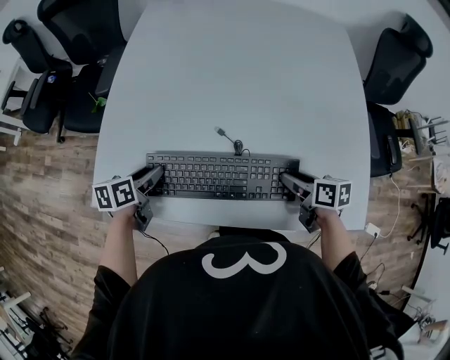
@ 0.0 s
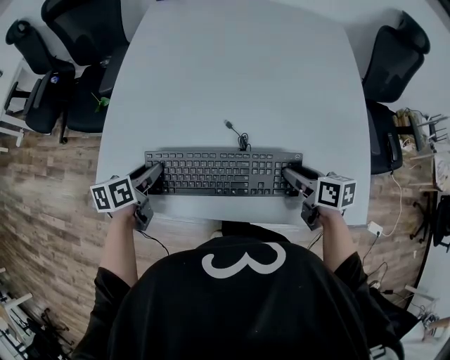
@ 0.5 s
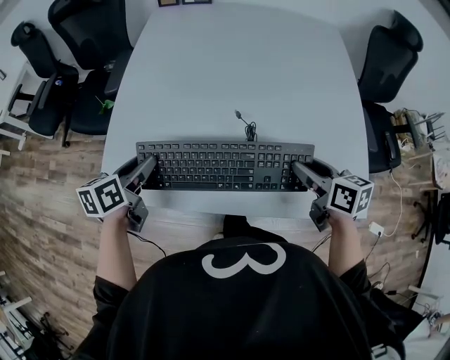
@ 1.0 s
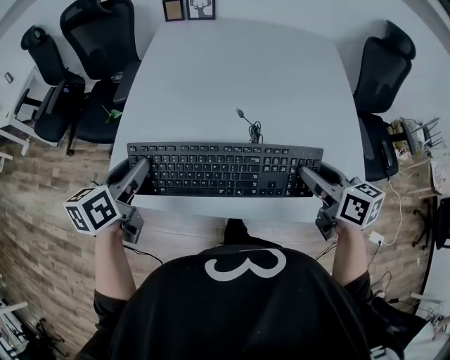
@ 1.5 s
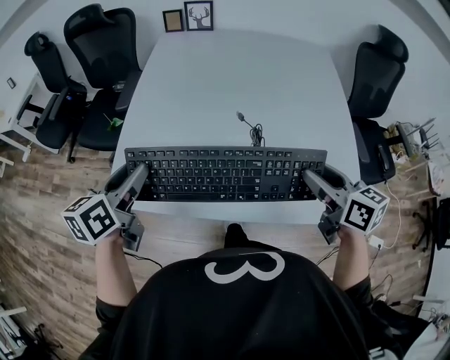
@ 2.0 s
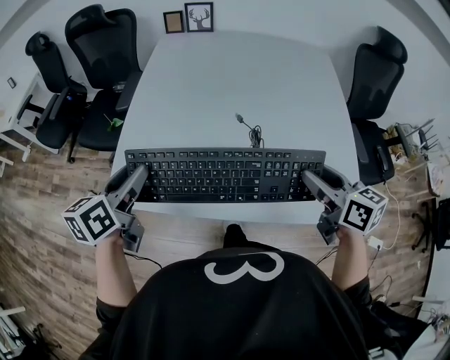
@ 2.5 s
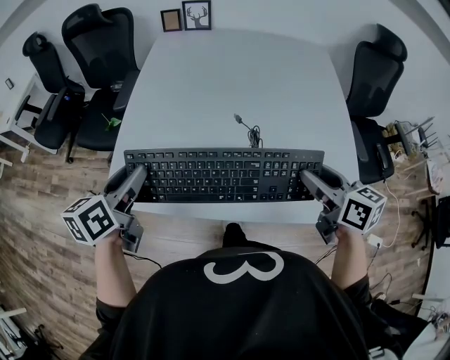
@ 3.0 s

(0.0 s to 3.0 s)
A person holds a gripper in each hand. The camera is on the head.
0.0 s - 1.5 s: Both grippers travel together upward, some 20 cm. The right gripper swivels about 20 degrees; the left gripper rotates roughly 20 degrees.
1.5 s - 3.0 s: There are only small adjustments of the grippers.

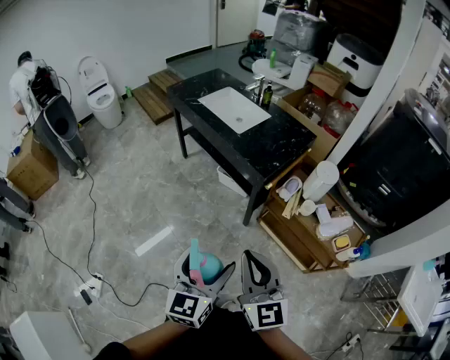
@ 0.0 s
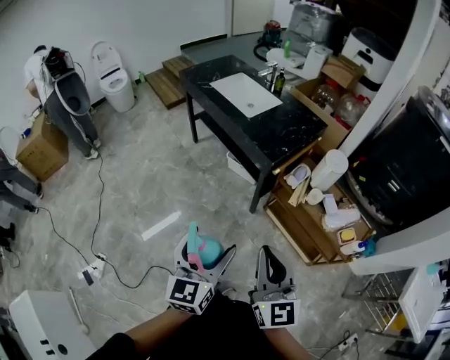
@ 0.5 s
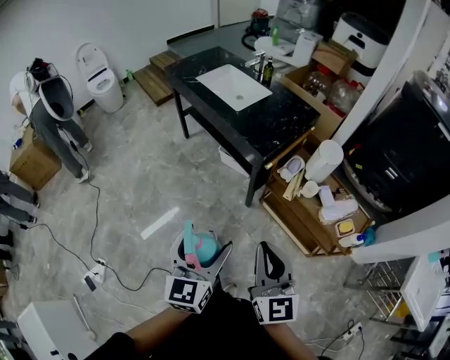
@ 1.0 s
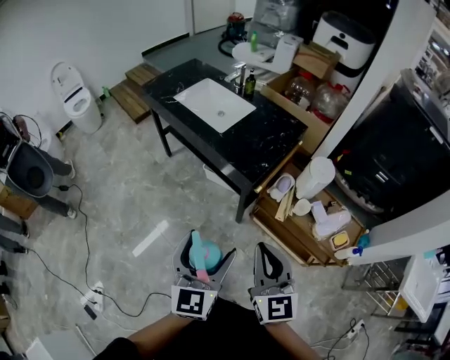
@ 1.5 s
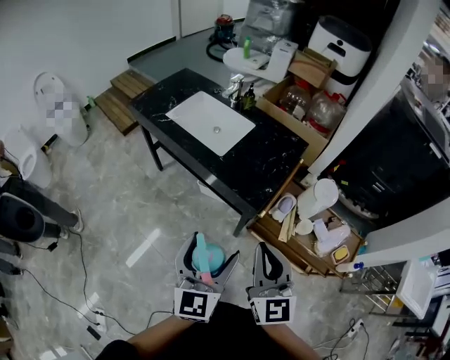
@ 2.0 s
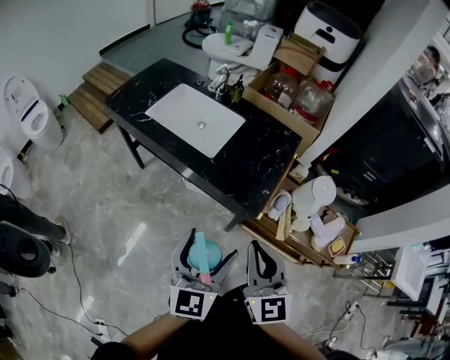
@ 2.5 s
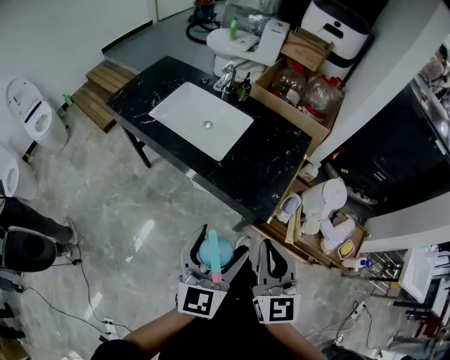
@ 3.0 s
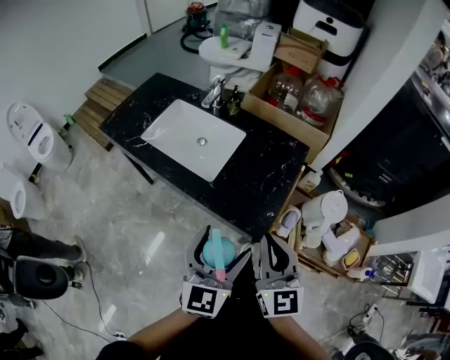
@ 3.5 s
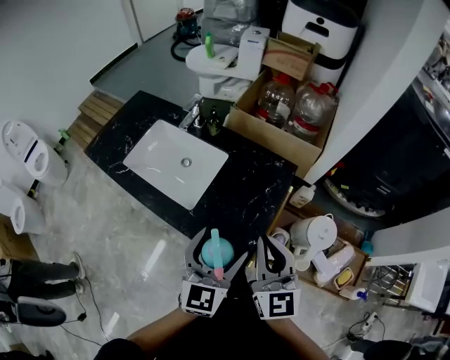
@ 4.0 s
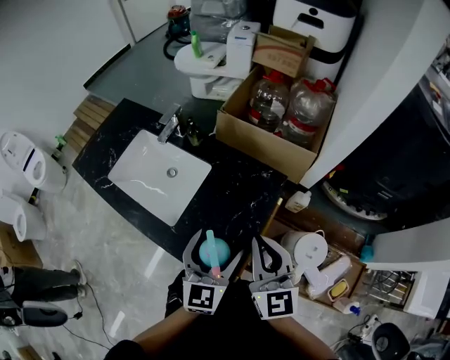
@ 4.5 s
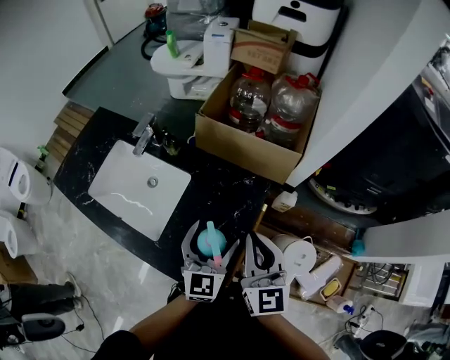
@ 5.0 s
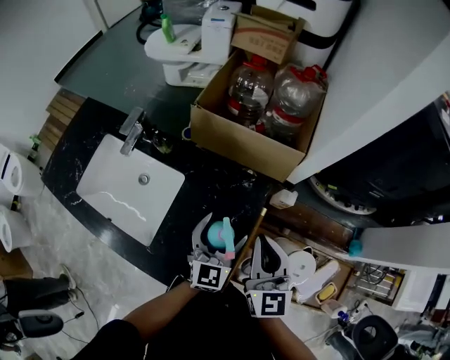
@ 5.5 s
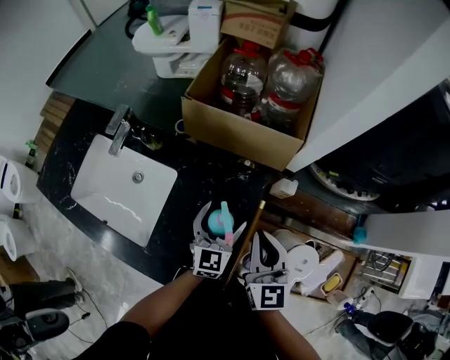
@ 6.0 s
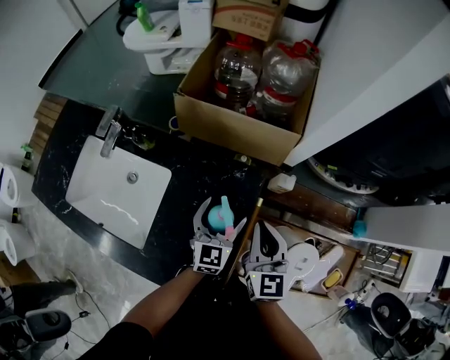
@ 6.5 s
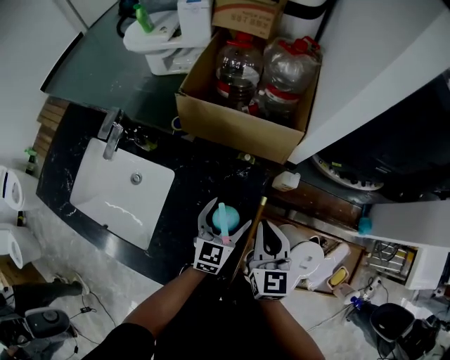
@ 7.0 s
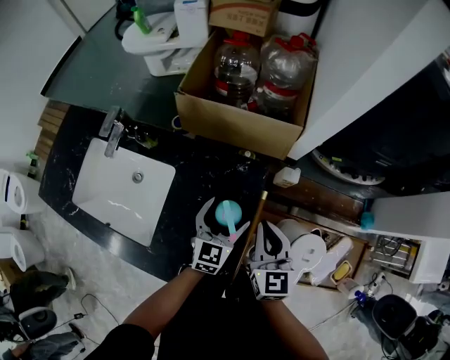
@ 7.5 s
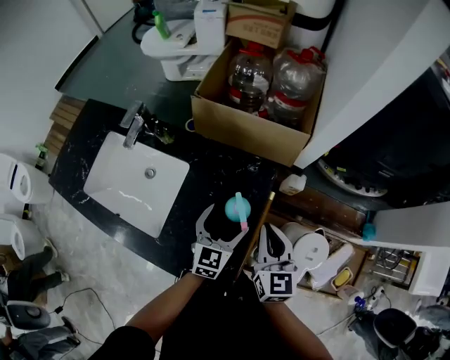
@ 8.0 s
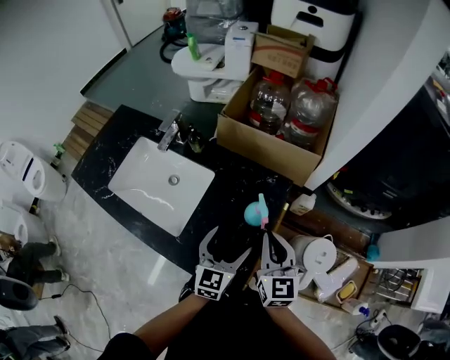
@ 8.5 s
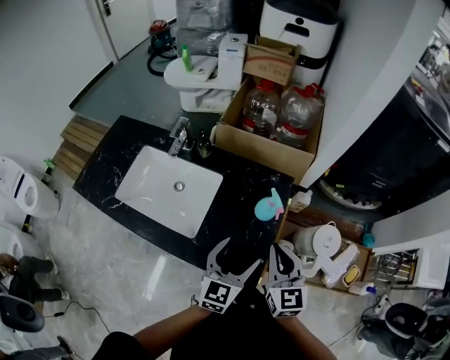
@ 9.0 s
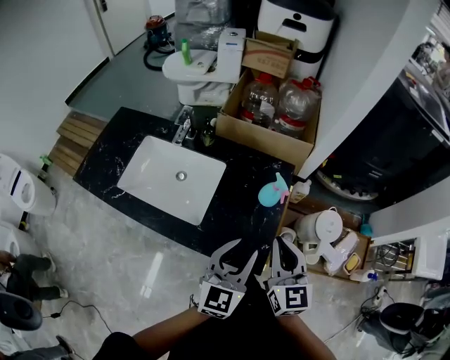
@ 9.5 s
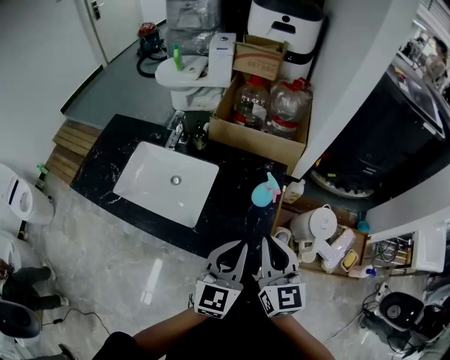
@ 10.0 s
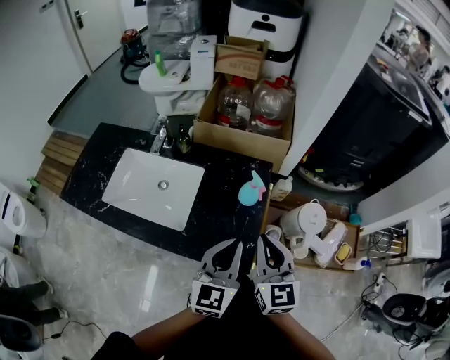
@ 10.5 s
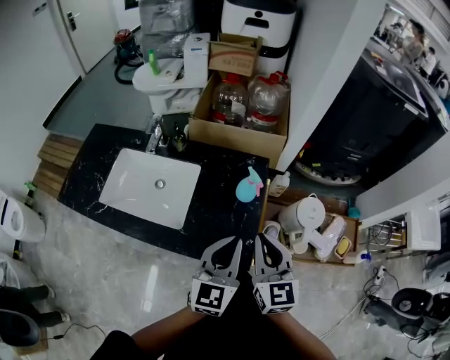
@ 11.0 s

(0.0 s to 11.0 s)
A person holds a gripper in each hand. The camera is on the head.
0.0 s - 2.0 s: Both grippers travel together forward, roughly 25 cm.
2.0 s - 3.5 s: Both grippers travel together forward, approximately 20 cm.
3.5 s - 5.5 s: The right gripper travels forward and to the right by roughly 35 cm; the left gripper moves forward, to the right and downward, some 40 cm.
5.5 s - 7.5 s: The two grippers go approximately 10 cm downward.
7.5 s - 9.0 s: The two grippers go some 20 cm backward, upward and to the left.
9.0 s - 11.0 s: The left gripper is displaced upward by some 10 cm, and closes up. Meanwhile the right gripper shifts about 5 cm backward.

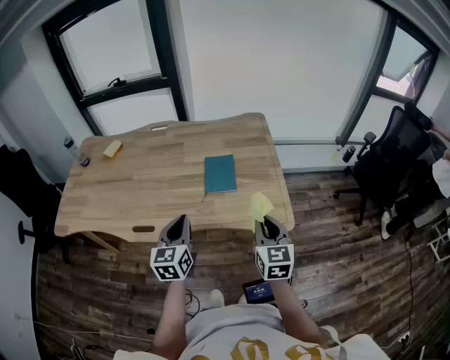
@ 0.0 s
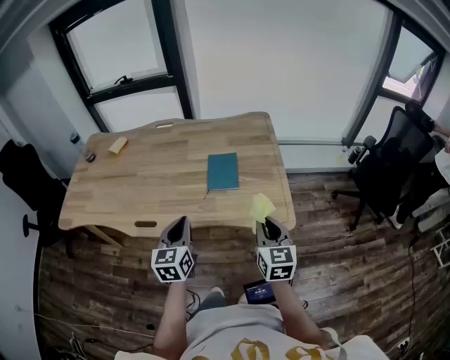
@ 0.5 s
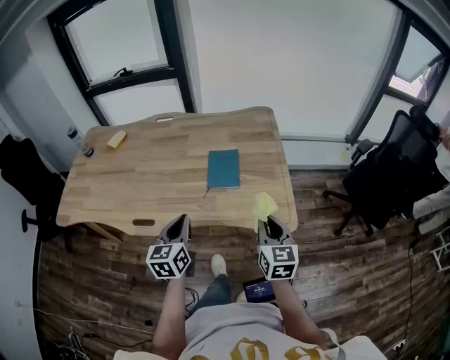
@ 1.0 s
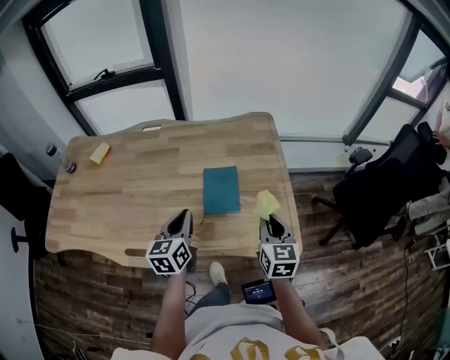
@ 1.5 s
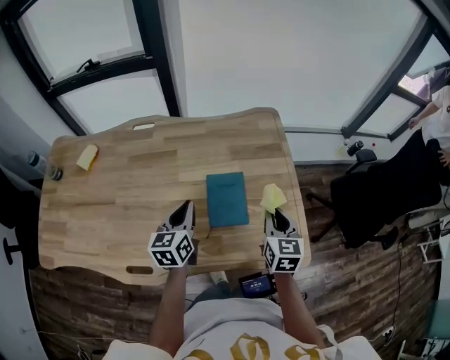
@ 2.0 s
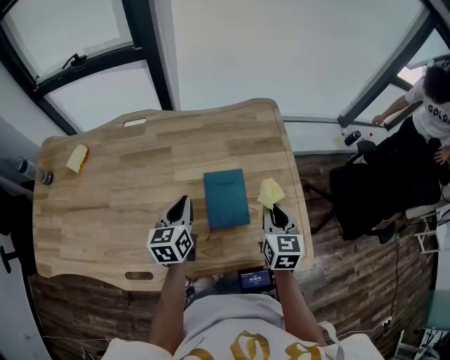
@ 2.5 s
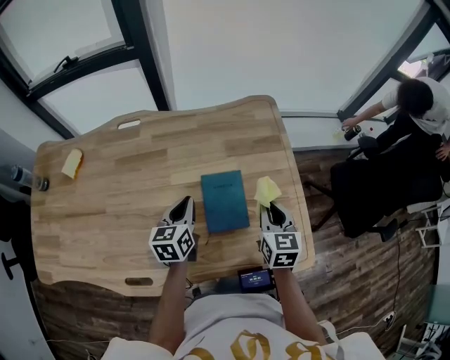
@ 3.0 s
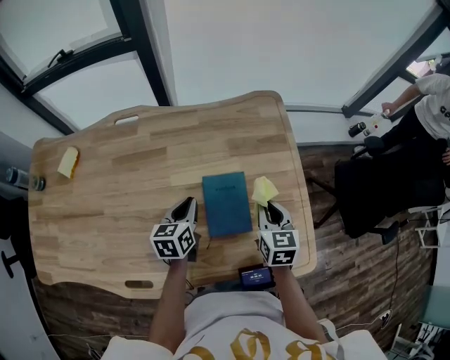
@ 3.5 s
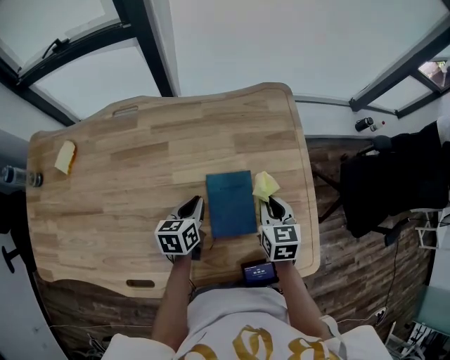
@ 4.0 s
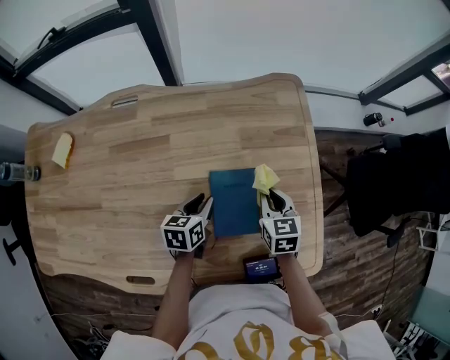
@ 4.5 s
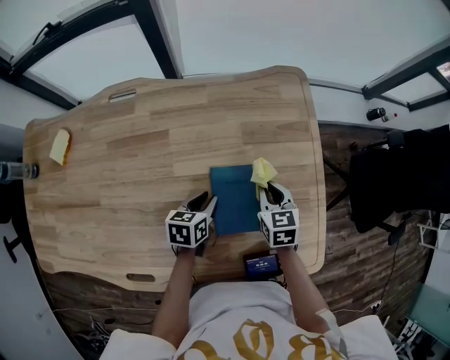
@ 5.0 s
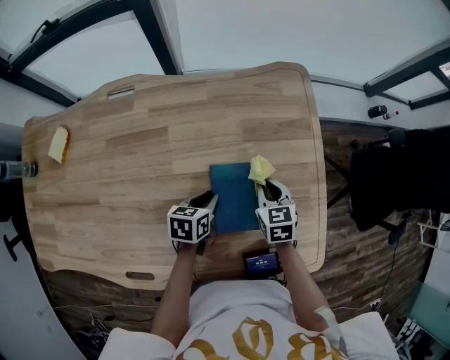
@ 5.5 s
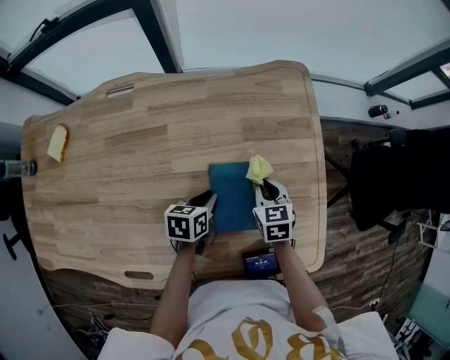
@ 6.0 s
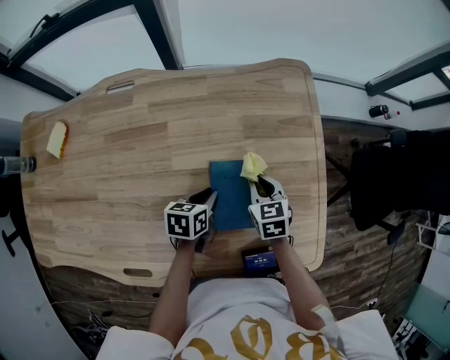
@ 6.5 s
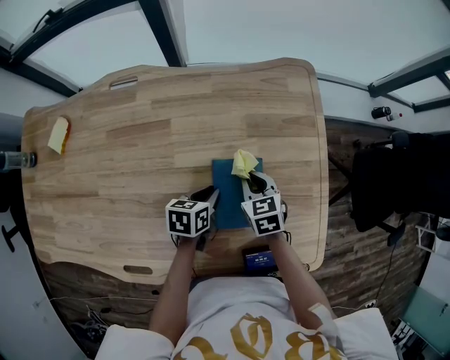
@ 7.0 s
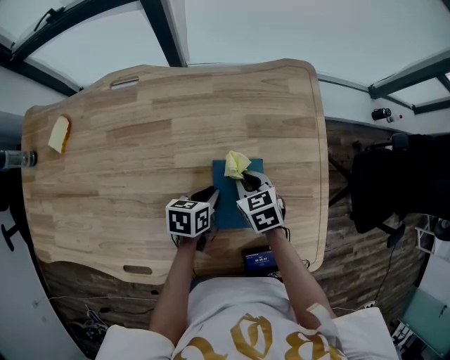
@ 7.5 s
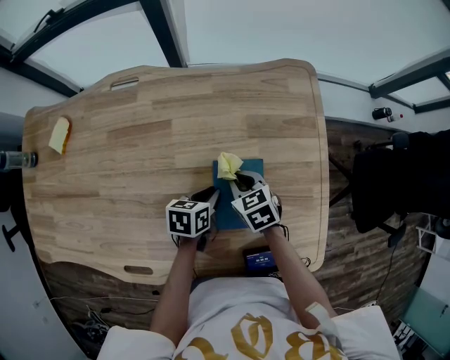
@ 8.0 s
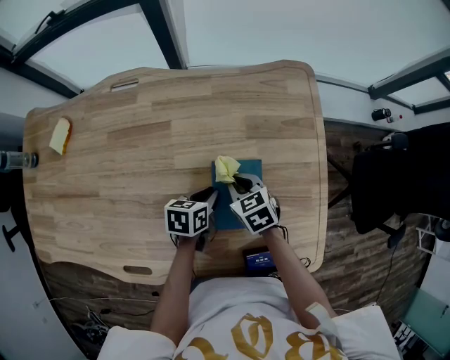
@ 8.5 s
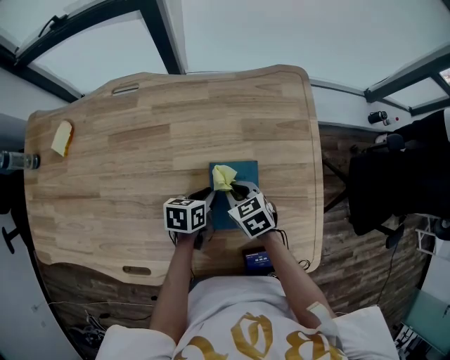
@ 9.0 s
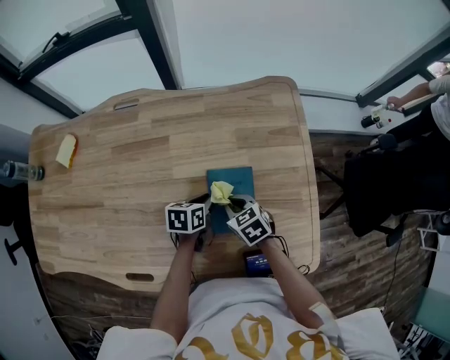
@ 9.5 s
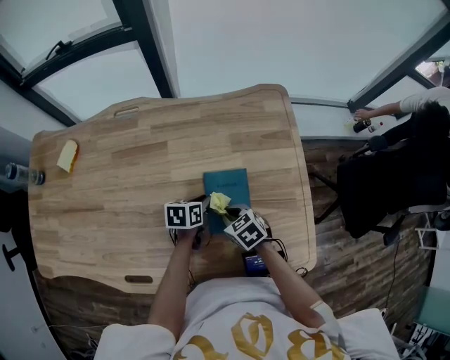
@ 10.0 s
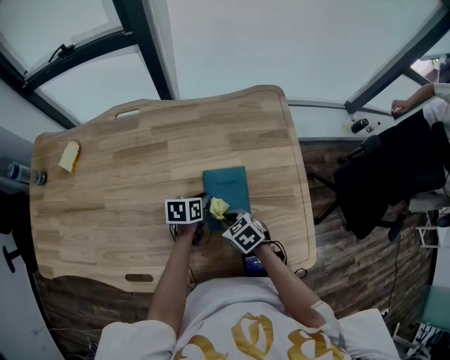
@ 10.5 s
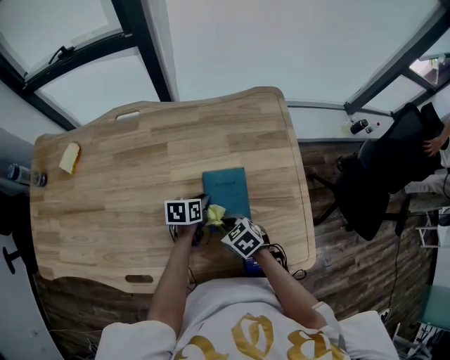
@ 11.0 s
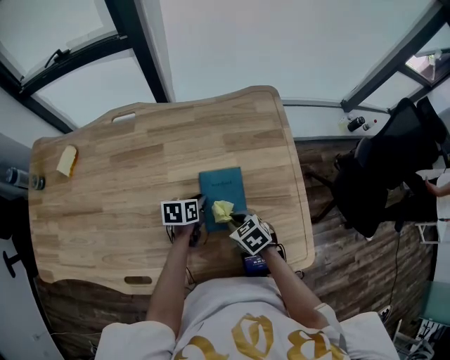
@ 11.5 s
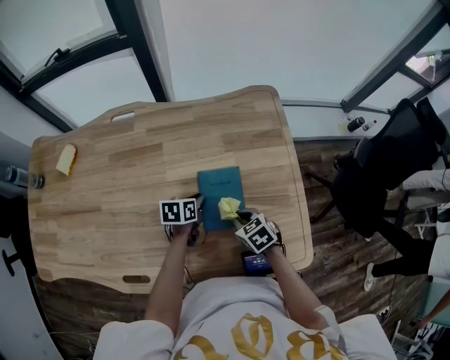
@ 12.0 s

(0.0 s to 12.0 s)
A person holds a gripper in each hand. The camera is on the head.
0.0 s - 2.0 s: The grippers both shift forward by some 25 cm.
2.0 s - 4.0 s: The two grippers go some 15 cm downward and forward. The left gripper changes its angle by roughly 20 degrees.
4.0 s - 6.0 s: Both grippers move downward, about 5 cm.
6.0 s - 8.0 s: The right gripper shifts approximately 10 cm to the left, and rotates approximately 20 degrees.
8.0 s - 10.0 s: The right gripper shifts about 10 cm backward.
10.0 s - 12.0 s: The right gripper is displaced to the right by some 5 cm.

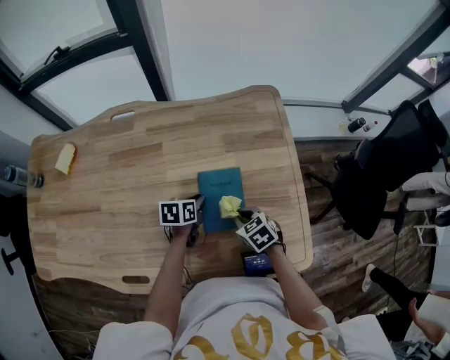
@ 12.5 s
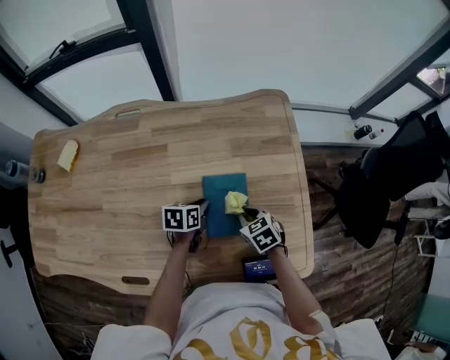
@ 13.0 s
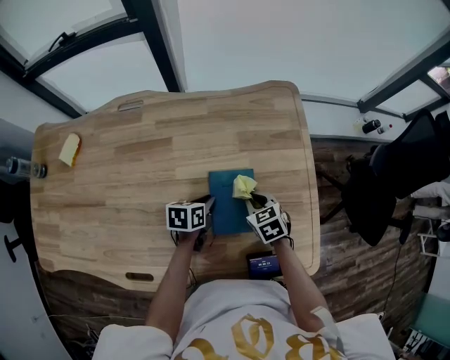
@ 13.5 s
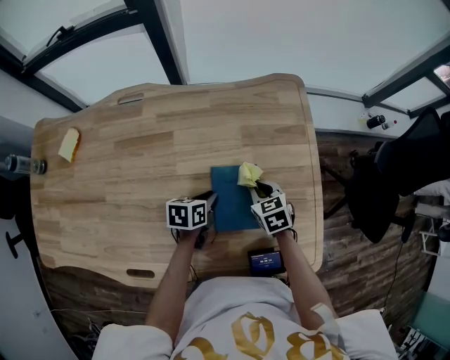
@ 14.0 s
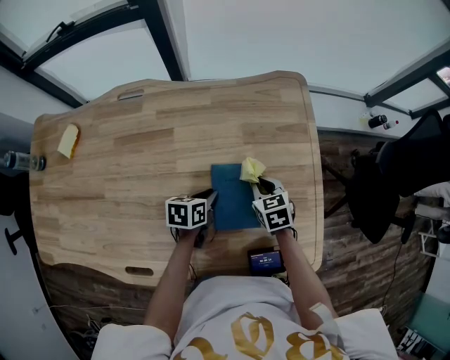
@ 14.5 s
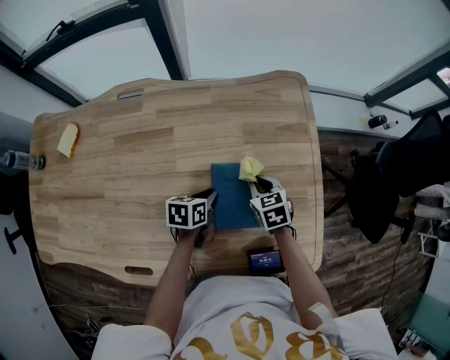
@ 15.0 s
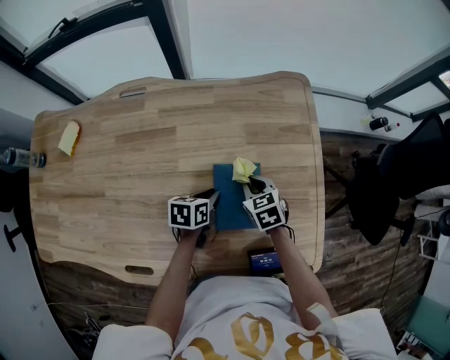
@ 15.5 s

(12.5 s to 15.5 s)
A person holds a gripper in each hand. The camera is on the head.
12.5 s - 14.0 s: The right gripper heads forward, covering about 10 cm.
14.0 s - 15.5 s: The grippers stay close to where they were, moving slightly.
